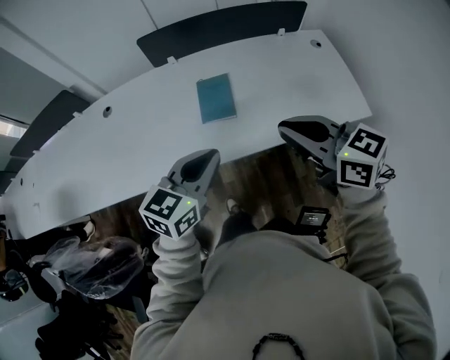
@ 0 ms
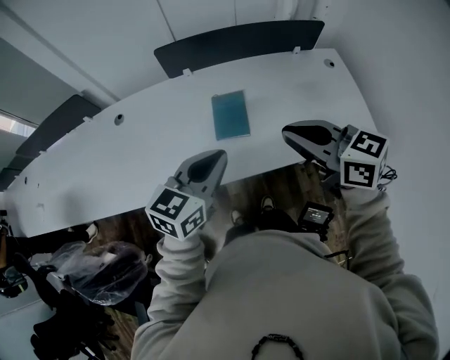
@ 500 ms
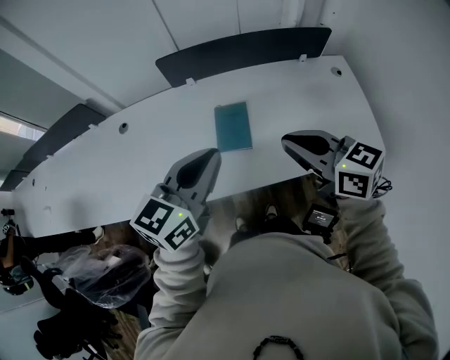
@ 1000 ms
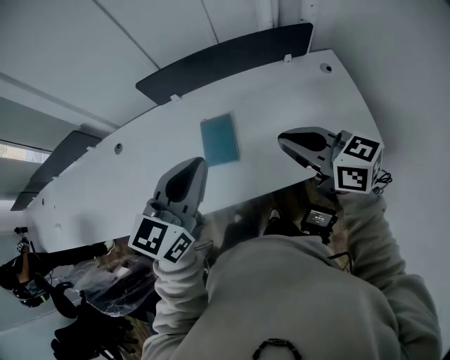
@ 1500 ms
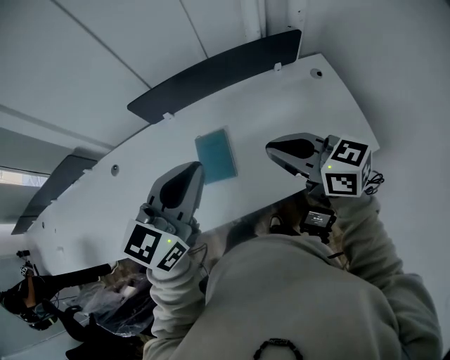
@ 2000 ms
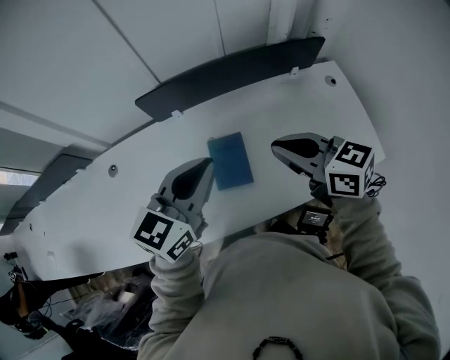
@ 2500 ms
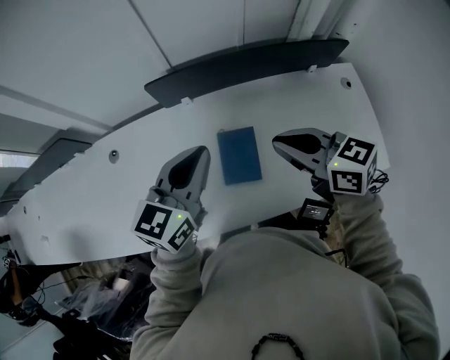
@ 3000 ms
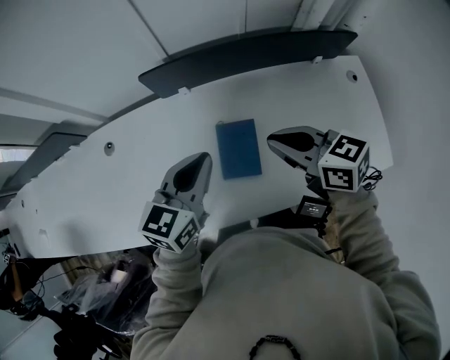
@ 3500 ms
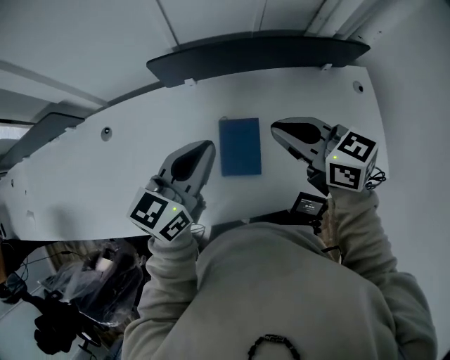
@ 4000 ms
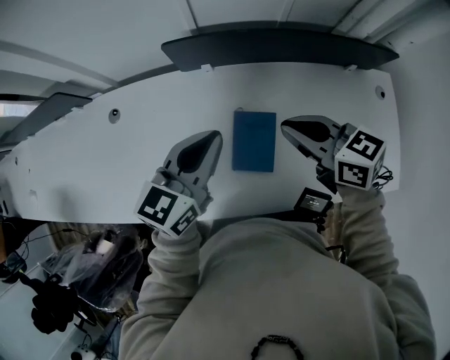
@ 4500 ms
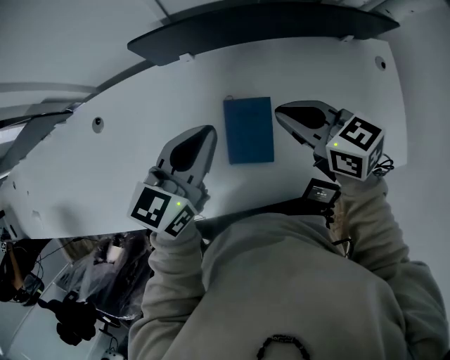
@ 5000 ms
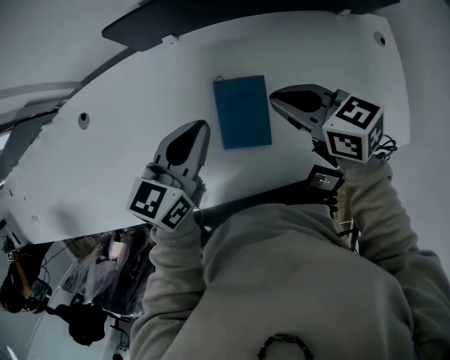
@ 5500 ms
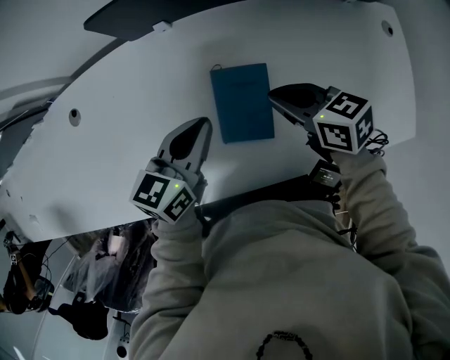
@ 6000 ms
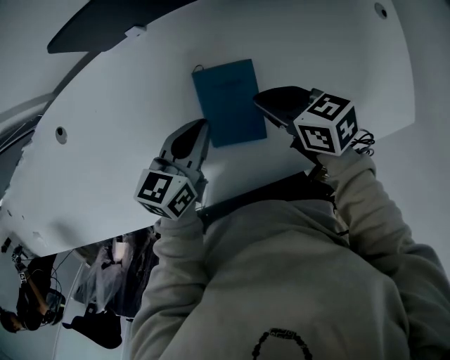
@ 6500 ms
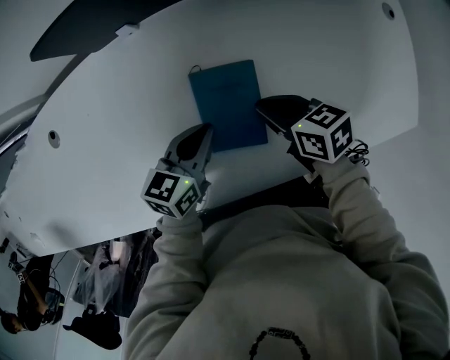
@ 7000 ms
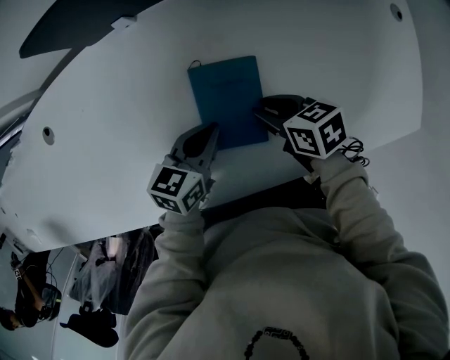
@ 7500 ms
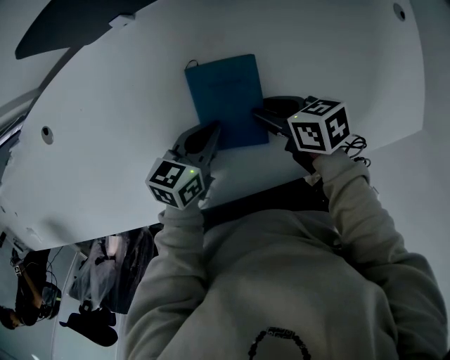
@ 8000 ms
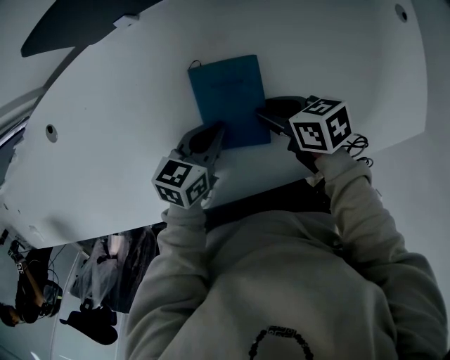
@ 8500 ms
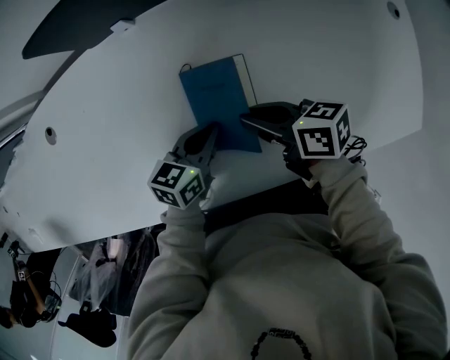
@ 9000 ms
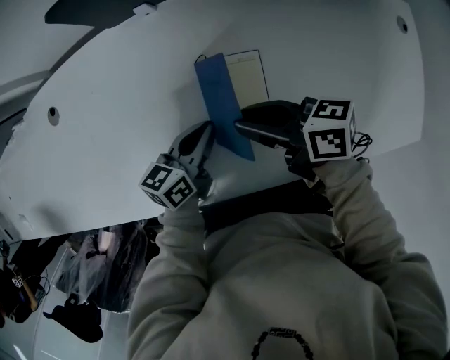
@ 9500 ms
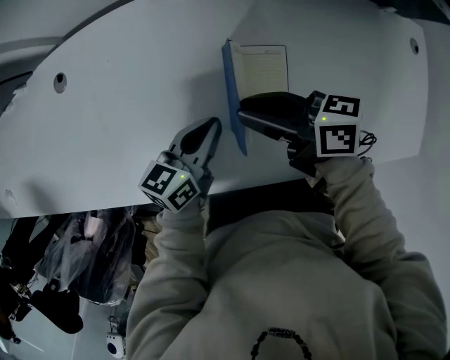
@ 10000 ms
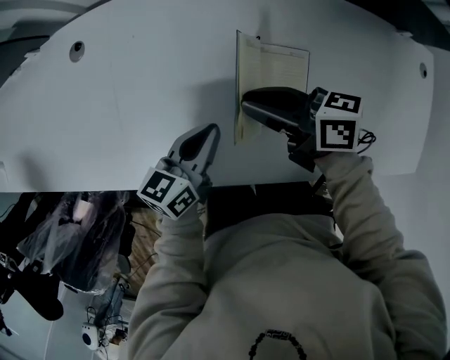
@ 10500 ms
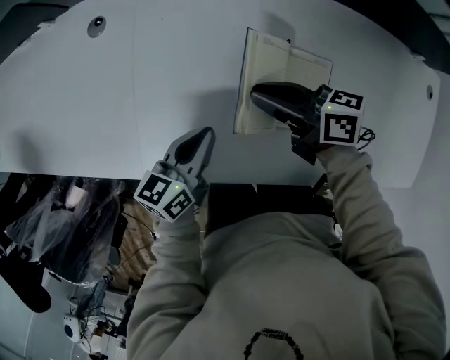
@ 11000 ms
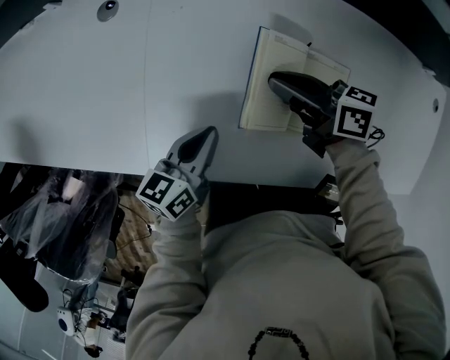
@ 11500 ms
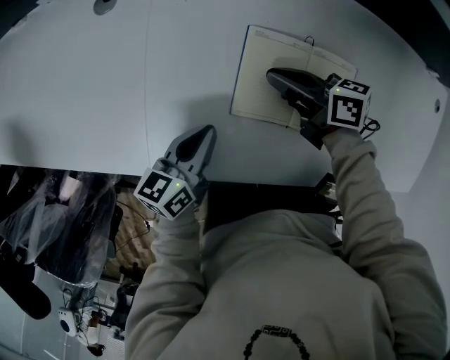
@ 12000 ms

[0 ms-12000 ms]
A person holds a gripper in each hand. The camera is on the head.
0 ms to 2000 ms: The right gripper travels forward and to the right by roughly 15 cm, while the left gripper heads forward, upward and to the right, covering about 20 cm.
2000 ms to 4000 ms: The right gripper heads forward and to the left, covering about 20 cm. The left gripper heads forward, downward and to the left, covering some 20 cm.
4000 ms to 6000 ms: The two grippers go approximately 20 cm downward. The right gripper turns by about 20 degrees.
6000 ms to 8000 ms: The grippers both shift downward by roughly 15 cm. The right gripper turns by roughly 20 degrees, and opens.
8000 ms to 10000 ms: The right gripper shifts approximately 15 cm upward, and tips its fingers upward by about 30 degrees. The left gripper shifts by approximately 10 cm.
10000 ms to 12000 ms: The left gripper shifts roughly 20 cm to the left, while the right gripper goes some 15 cm to the left, downward and forward.

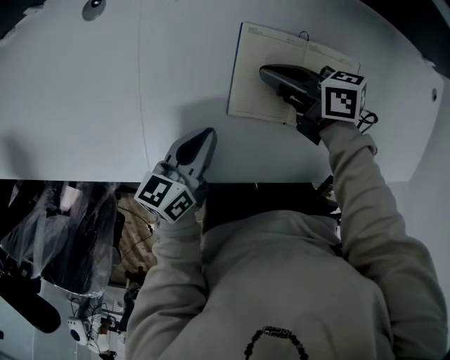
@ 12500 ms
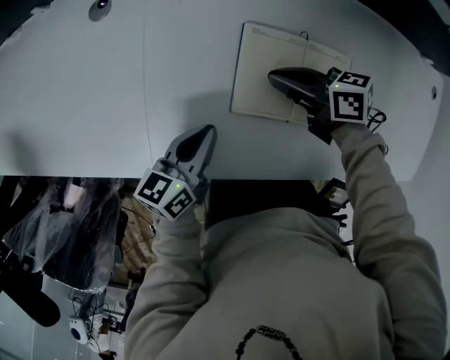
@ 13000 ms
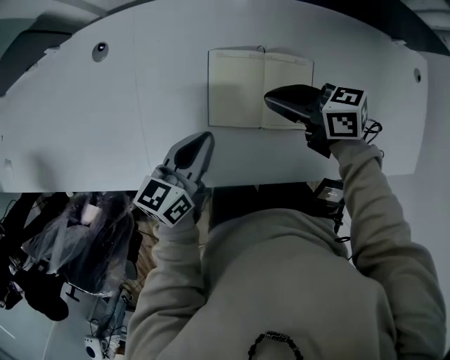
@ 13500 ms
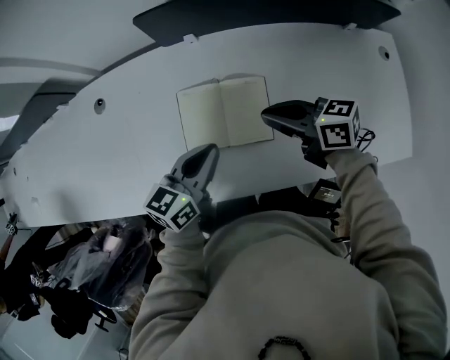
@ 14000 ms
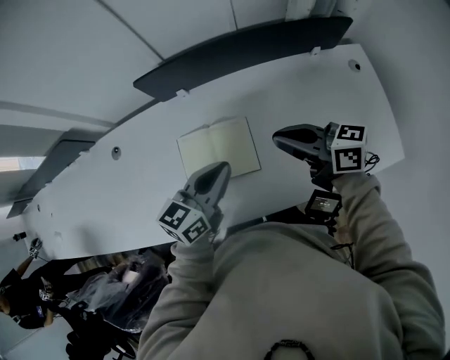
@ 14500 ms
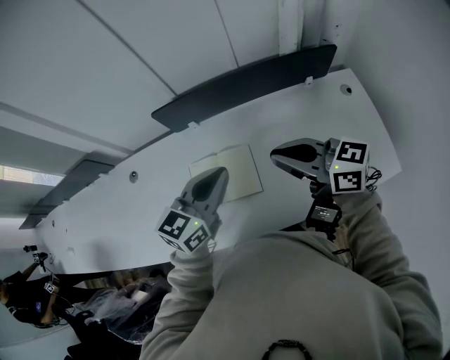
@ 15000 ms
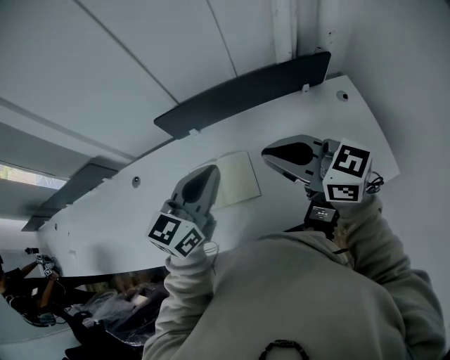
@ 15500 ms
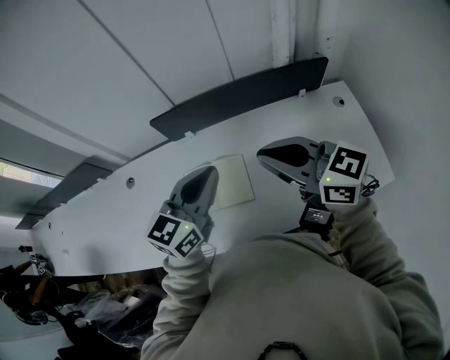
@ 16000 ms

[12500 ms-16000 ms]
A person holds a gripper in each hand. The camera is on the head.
12500 ms to 14500 ms: The right gripper travels upward, to the right and backward by about 40 cm, and rotates approximately 30 degrees; the left gripper moves to the right and upward, some 35 cm, and swivels roughly 40 degrees.
14500 ms to 16000 ms: Both grippers move upward, about 15 cm. The right gripper rotates approximately 30 degrees.

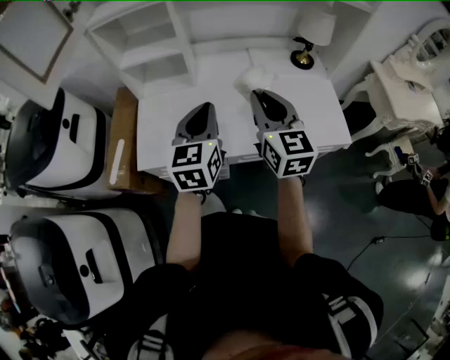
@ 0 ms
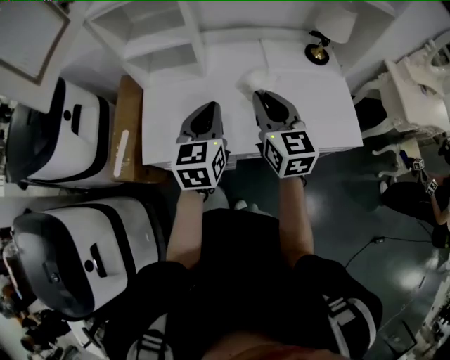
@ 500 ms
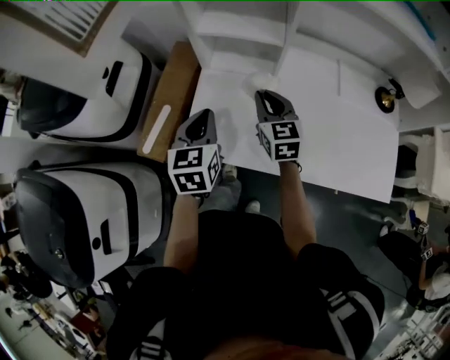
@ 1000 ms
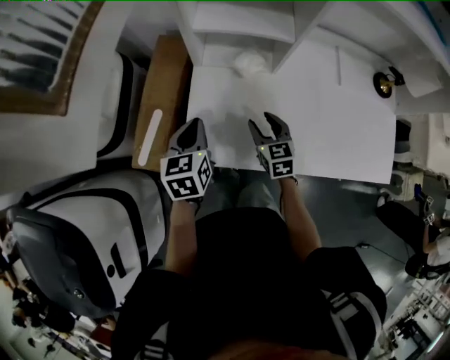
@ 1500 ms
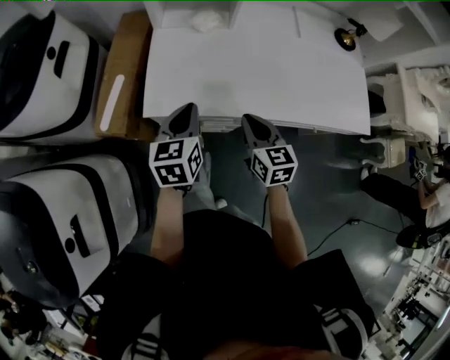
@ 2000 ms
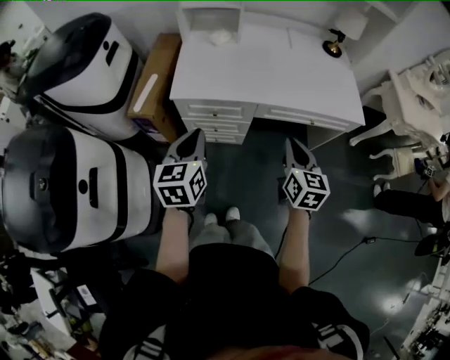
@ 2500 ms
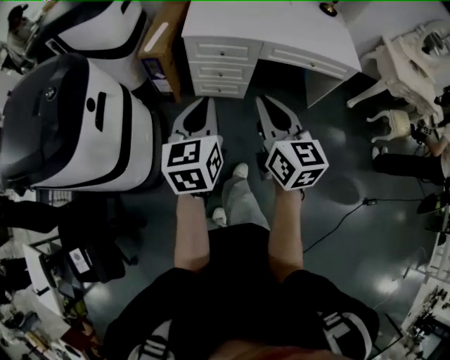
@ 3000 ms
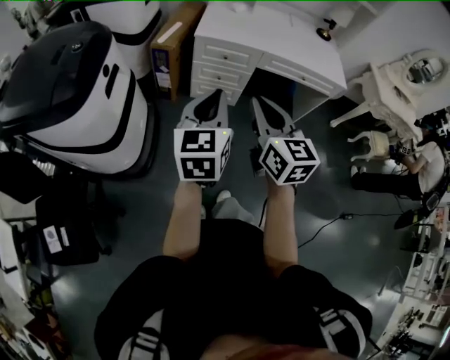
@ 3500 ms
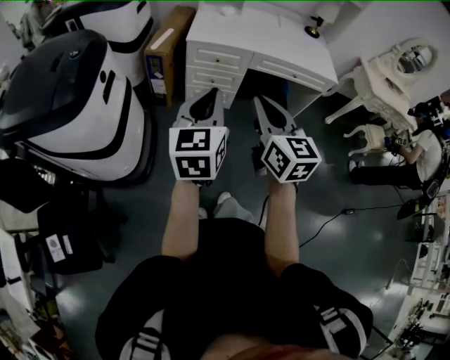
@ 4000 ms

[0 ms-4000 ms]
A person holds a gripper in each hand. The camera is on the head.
0 ms to 2000 ms: The right gripper shifts roughly 30 cm downward and to the left, changes its angle by roughly 20 degrees, and opens, then closes once more. The left gripper heads to the left and downward, covering some 30 cm, and changes its angle by approximately 20 degrees.
2000 ms to 4000 ms: The pair of grippers is taken backward, about 70 cm. The right gripper swivels some 20 degrees, while the left gripper swivels approximately 20 degrees.

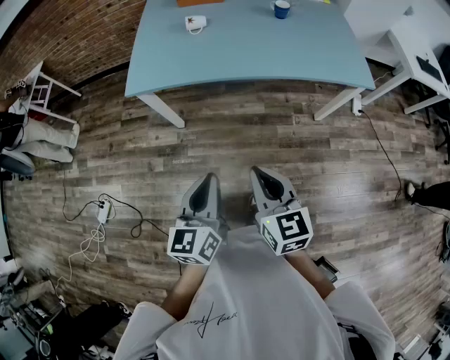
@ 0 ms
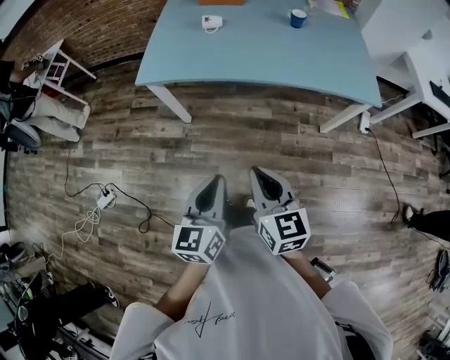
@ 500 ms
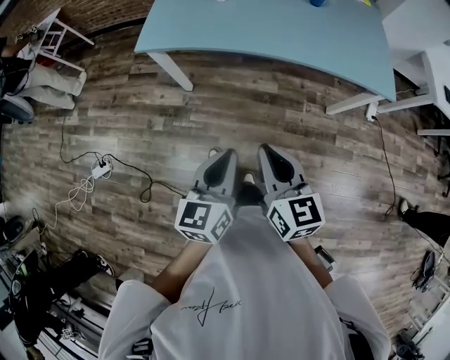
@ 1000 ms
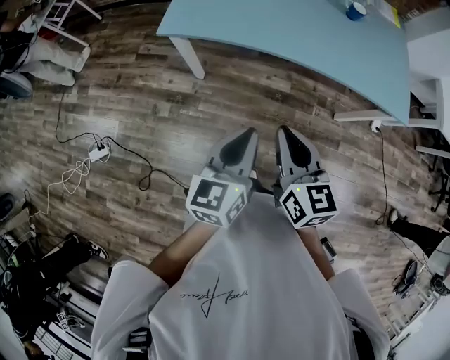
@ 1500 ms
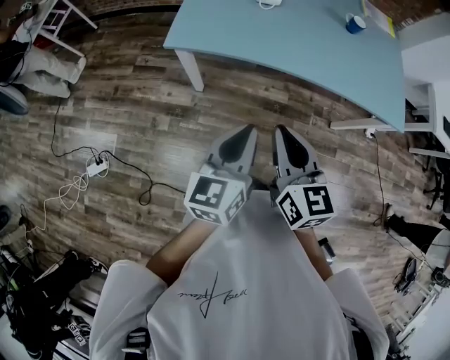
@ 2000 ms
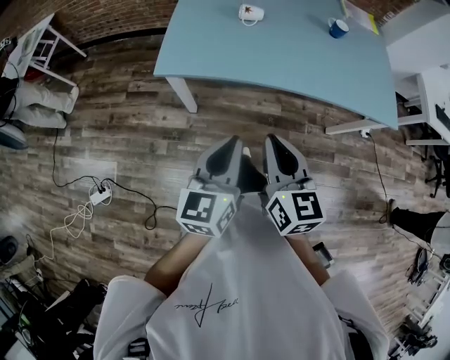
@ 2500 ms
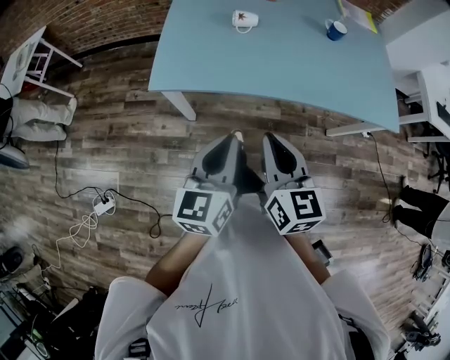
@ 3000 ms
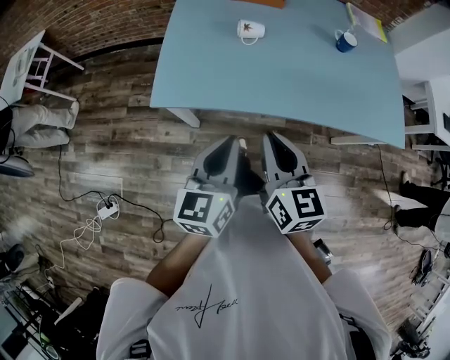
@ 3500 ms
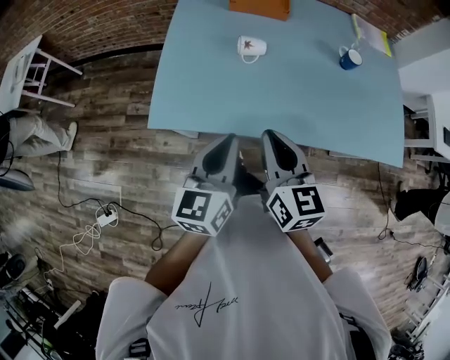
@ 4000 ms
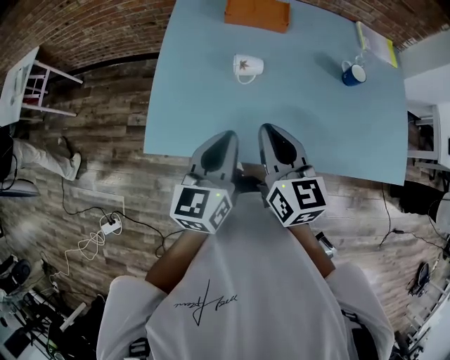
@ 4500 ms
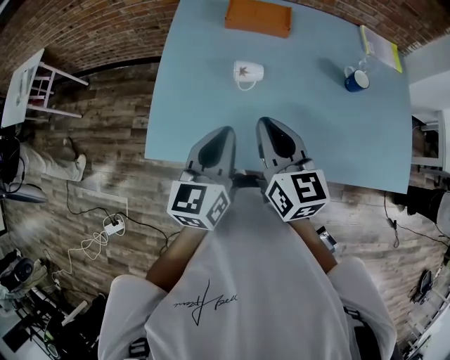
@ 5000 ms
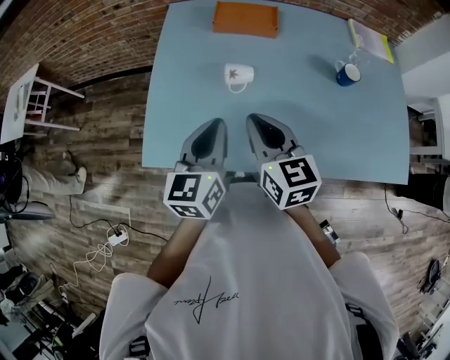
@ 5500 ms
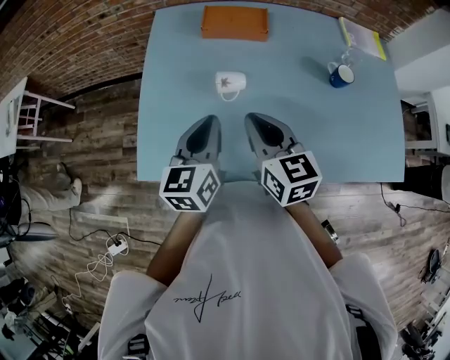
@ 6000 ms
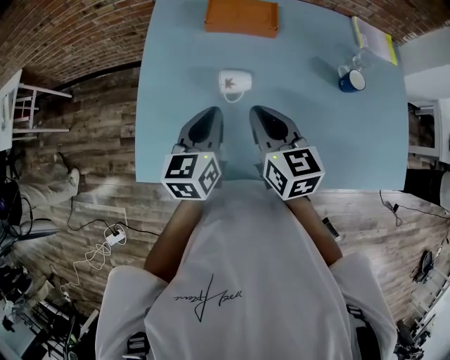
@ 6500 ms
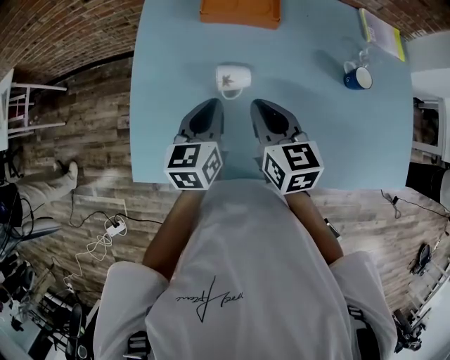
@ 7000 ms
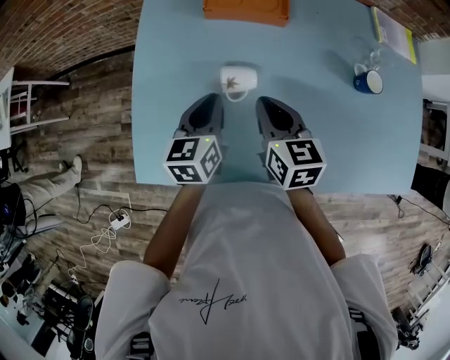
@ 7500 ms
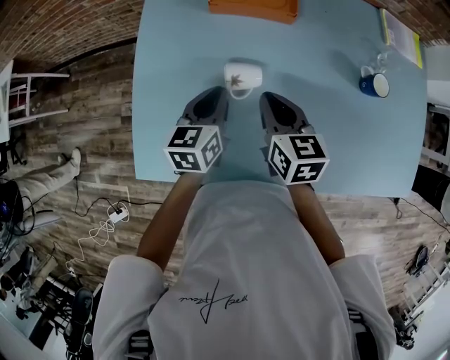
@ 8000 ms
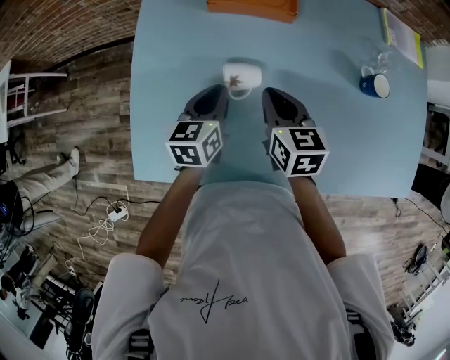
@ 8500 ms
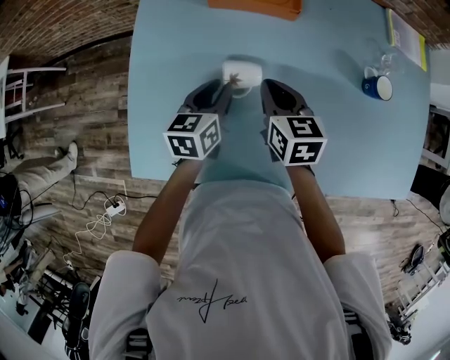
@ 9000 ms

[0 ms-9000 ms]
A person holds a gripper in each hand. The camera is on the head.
0 ms to 2000 ms: The grippers both shift forward and to the left by roughly 15 cm.
2000 ms to 4500 ms: The two grippers go about 30 cm forward.
4500 ms to 7000 ms: The two grippers go some 15 cm forward and downward.
7000 ms to 9000 ms: The grippers both shift downward and forward by approximately 10 cm.
